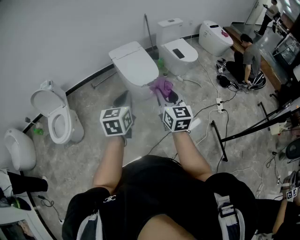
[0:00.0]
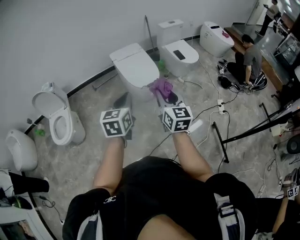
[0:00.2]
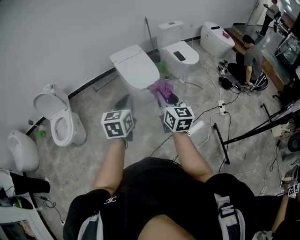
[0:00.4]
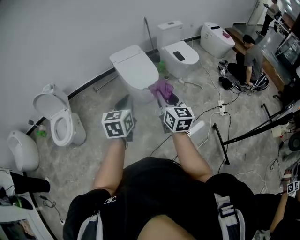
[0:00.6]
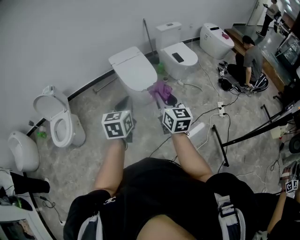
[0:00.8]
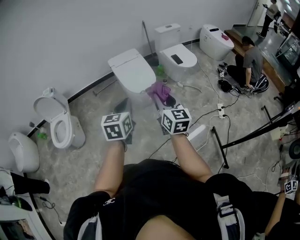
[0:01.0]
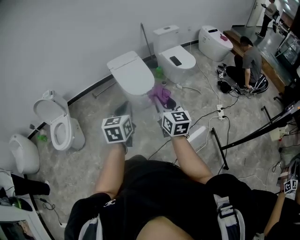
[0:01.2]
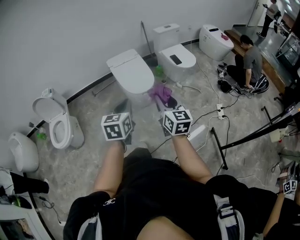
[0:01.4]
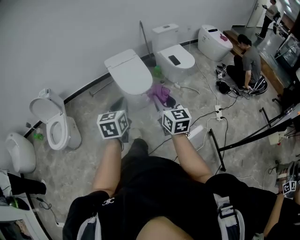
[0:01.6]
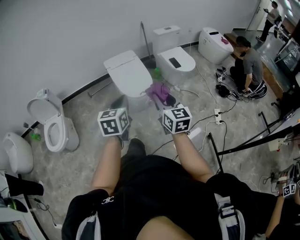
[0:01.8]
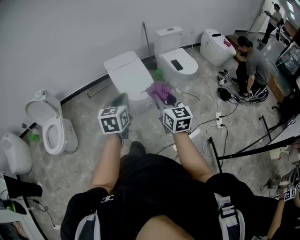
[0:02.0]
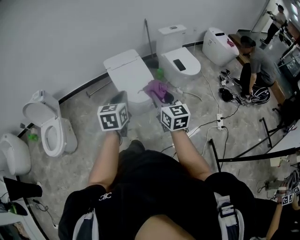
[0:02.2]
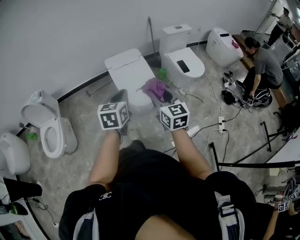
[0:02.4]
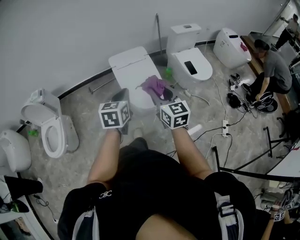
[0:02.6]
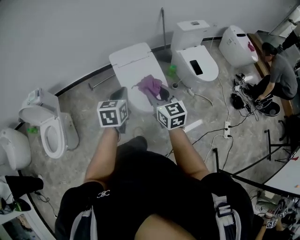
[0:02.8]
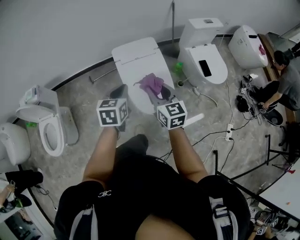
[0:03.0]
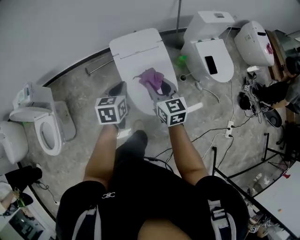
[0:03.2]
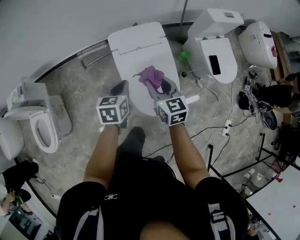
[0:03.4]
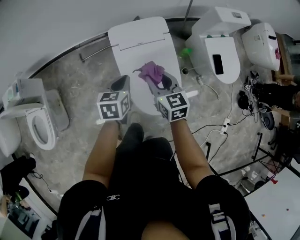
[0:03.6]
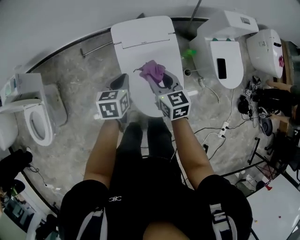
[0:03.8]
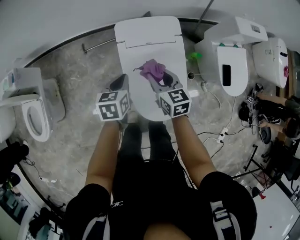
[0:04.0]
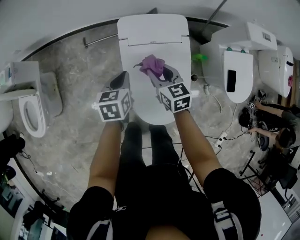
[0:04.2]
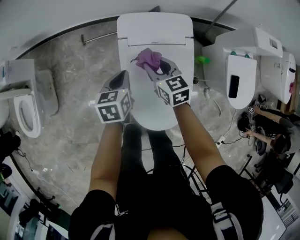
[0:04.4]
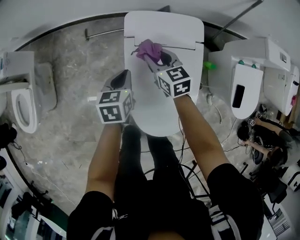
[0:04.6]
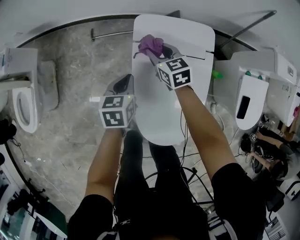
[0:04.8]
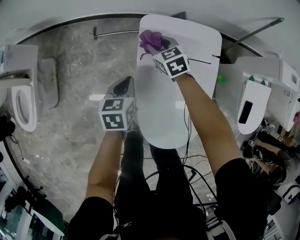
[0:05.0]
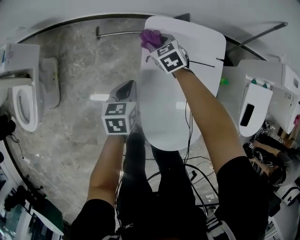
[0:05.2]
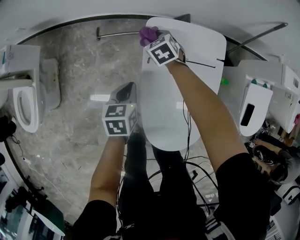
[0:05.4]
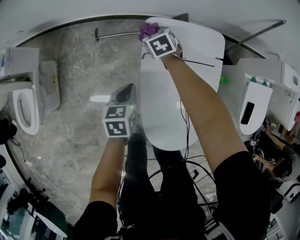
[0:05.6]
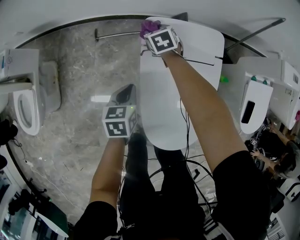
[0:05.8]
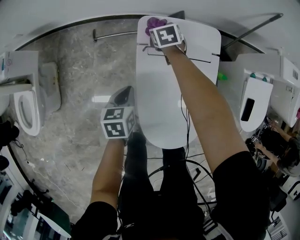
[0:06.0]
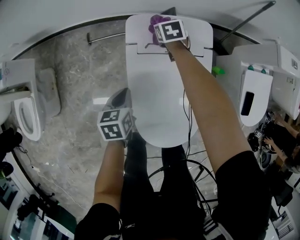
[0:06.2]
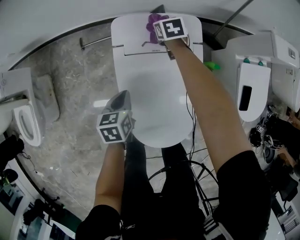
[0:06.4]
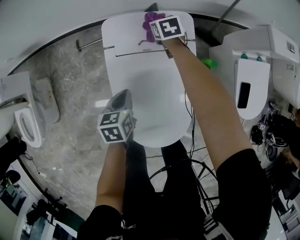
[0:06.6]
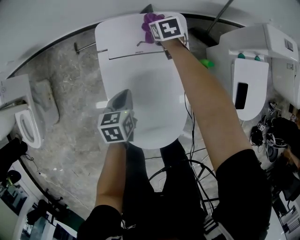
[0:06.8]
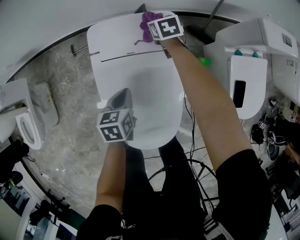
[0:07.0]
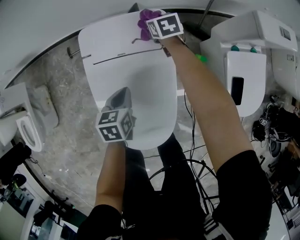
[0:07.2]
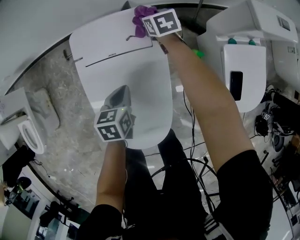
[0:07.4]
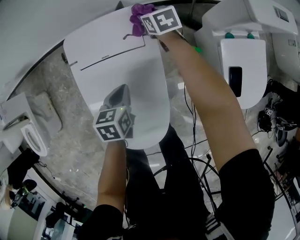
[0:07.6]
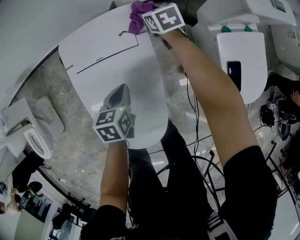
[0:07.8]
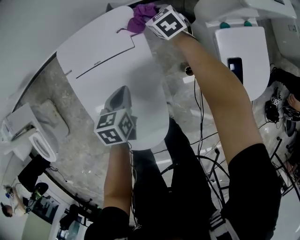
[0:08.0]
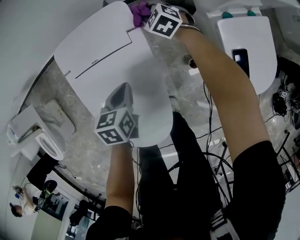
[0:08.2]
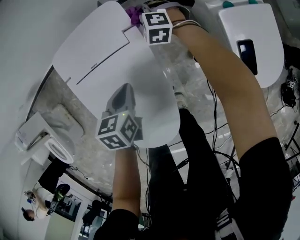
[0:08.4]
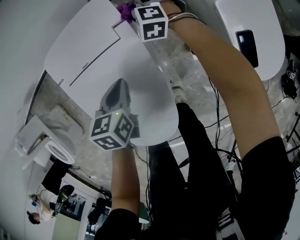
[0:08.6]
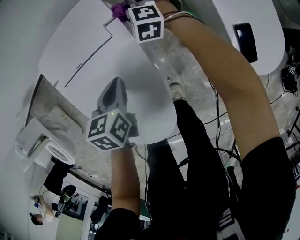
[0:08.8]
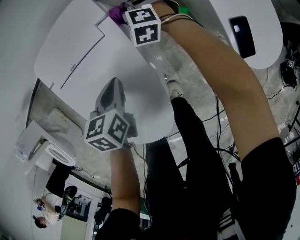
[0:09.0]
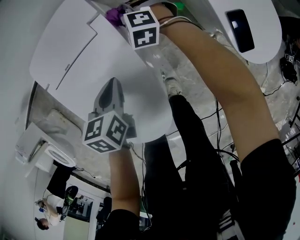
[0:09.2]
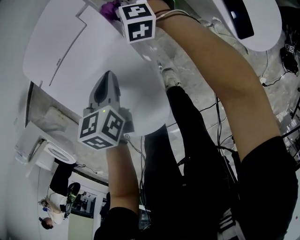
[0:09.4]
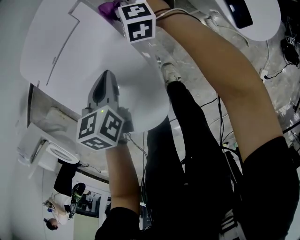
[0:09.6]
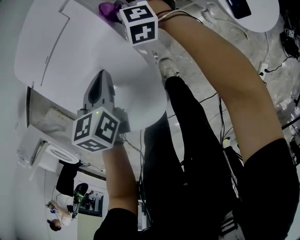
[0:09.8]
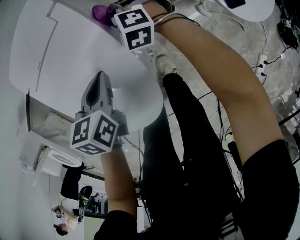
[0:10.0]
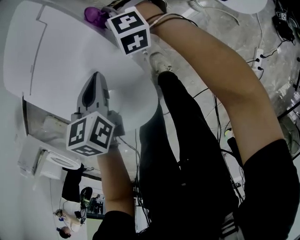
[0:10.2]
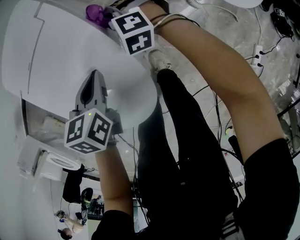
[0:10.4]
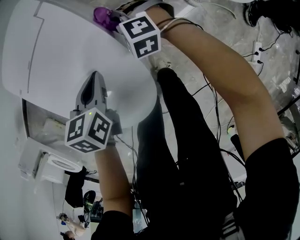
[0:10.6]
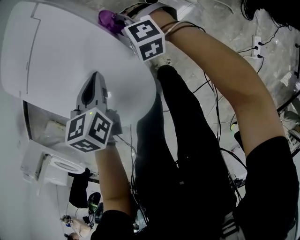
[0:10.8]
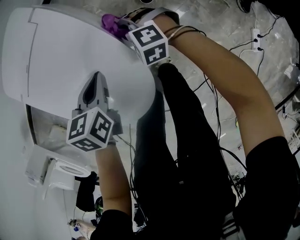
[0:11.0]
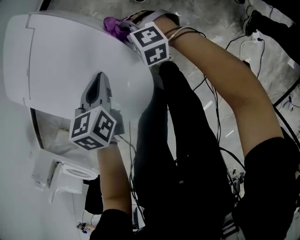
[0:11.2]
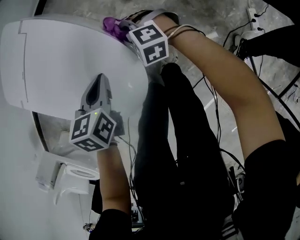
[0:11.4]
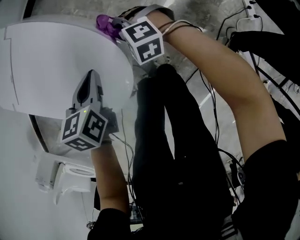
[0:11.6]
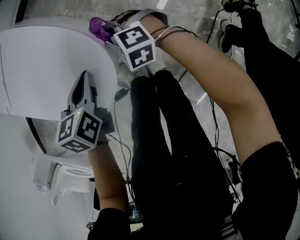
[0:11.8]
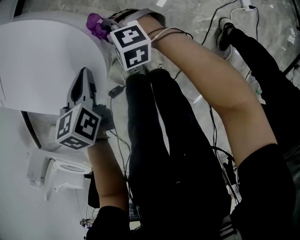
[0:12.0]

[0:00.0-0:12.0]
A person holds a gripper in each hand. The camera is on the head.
0:00.0 to 0:01.6: The grippers both shift to the right by approximately 10 cm.
0:01.6 to 0:03.0: The pair of grippers is taken forward, approximately 50 cm.
0:03.0 to 0:04.4: The right gripper travels forward and downward by roughly 40 cm, and changes its angle by some 30 degrees. The left gripper travels downward and forward by roughly 35 cm, and rotates roughly 30 degrees.
0:04.4 to 0:06.0: The right gripper shifts some 30 cm forward and downward, and changes its angle by about 20 degrees. Meanwhile the left gripper shifts roughly 10 cm downward and to the left.
0:06.0 to 0:07.6: Both grippers move to the right, approximately 30 cm.
0:07.6 to 0:09.0: The left gripper travels to the right by approximately 5 cm. The right gripper shifts approximately 15 cm downward and backward, and rolls counterclockwise, seen from behind, by approximately 50 degrees.
0:09.0 to 0:10.4: The left gripper moves backward, approximately 10 cm. Meanwhile the right gripper moves backward, roughly 20 cm.
0:10.4 to 0:12.0: Both grippers move backward, some 25 cm. The right gripper rotates some 20 degrees.

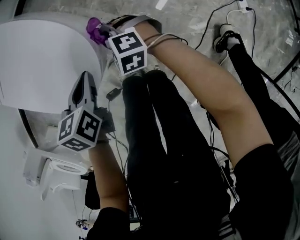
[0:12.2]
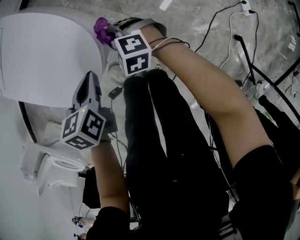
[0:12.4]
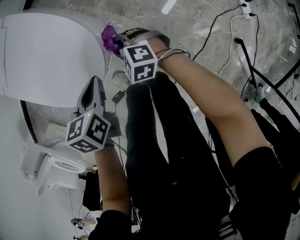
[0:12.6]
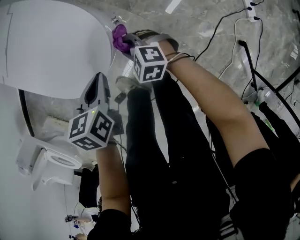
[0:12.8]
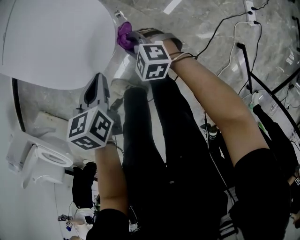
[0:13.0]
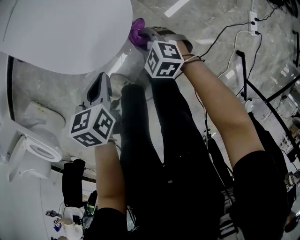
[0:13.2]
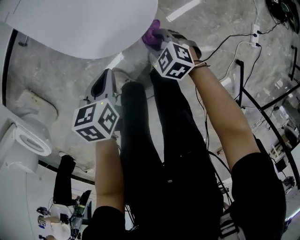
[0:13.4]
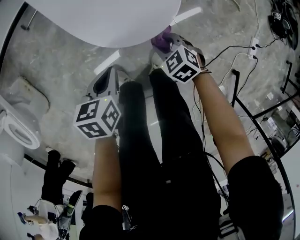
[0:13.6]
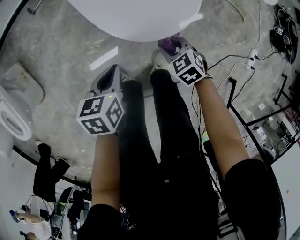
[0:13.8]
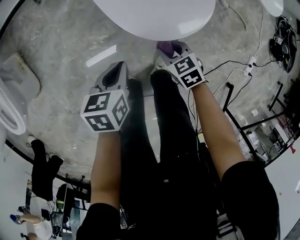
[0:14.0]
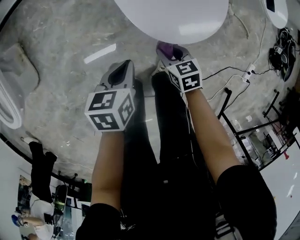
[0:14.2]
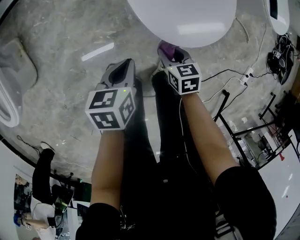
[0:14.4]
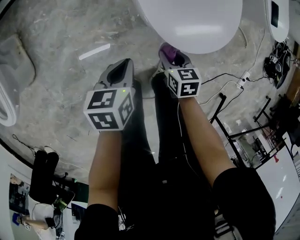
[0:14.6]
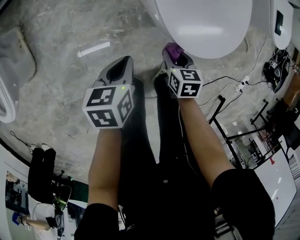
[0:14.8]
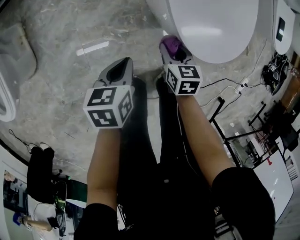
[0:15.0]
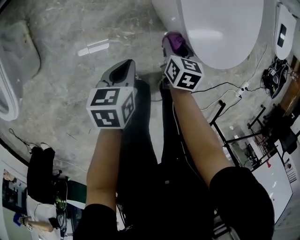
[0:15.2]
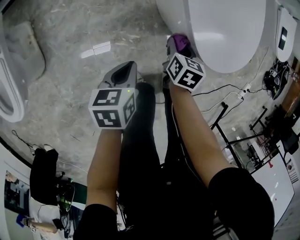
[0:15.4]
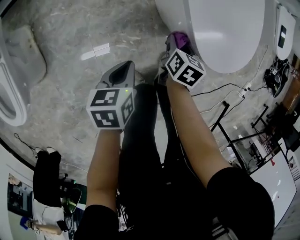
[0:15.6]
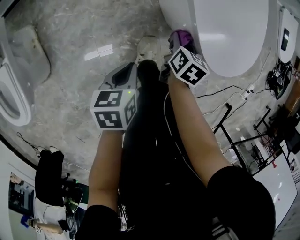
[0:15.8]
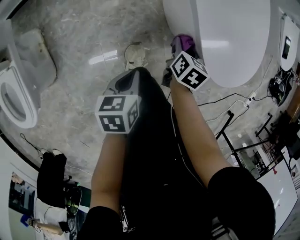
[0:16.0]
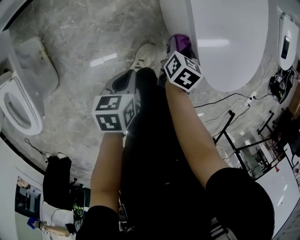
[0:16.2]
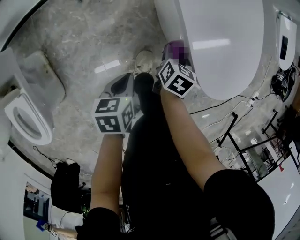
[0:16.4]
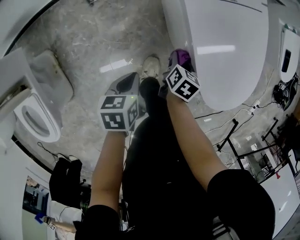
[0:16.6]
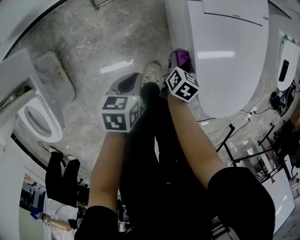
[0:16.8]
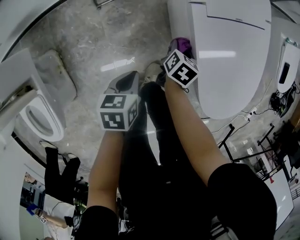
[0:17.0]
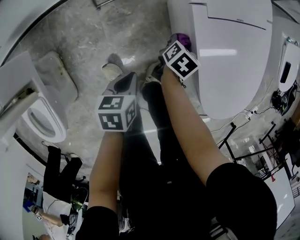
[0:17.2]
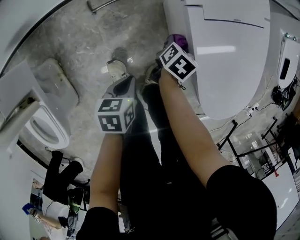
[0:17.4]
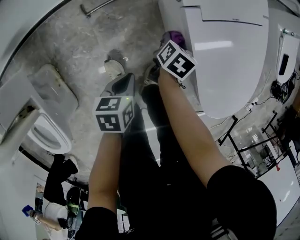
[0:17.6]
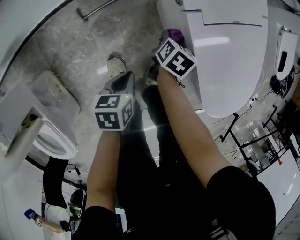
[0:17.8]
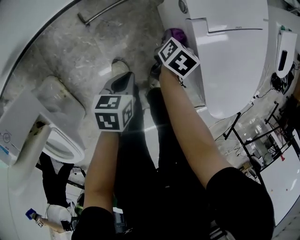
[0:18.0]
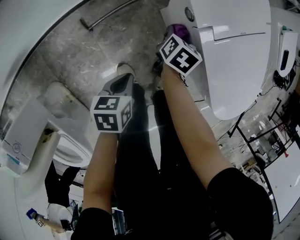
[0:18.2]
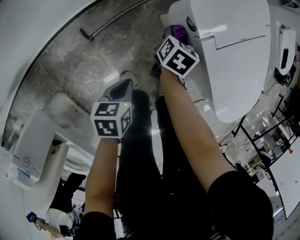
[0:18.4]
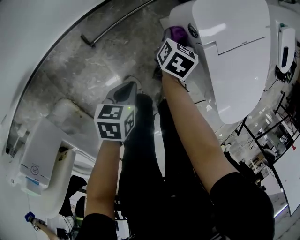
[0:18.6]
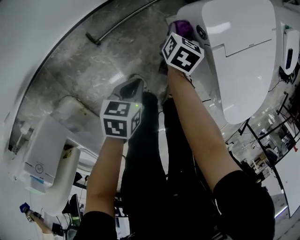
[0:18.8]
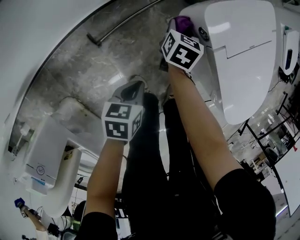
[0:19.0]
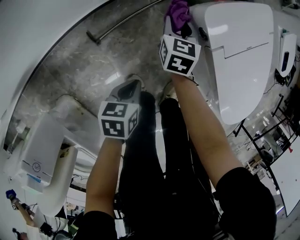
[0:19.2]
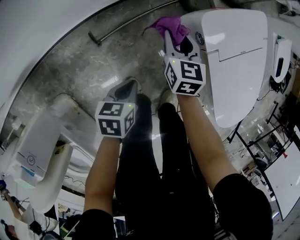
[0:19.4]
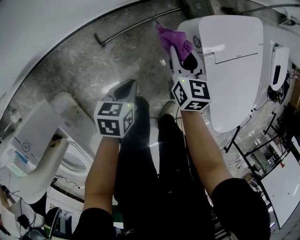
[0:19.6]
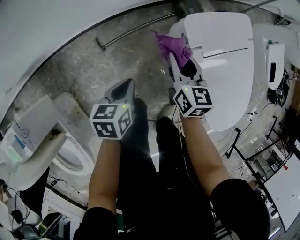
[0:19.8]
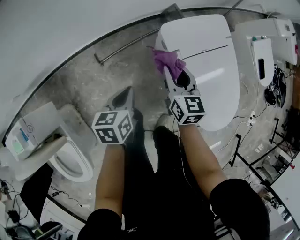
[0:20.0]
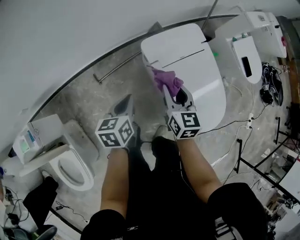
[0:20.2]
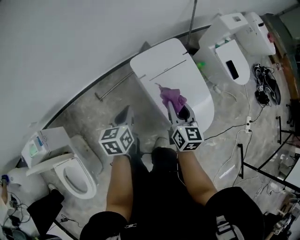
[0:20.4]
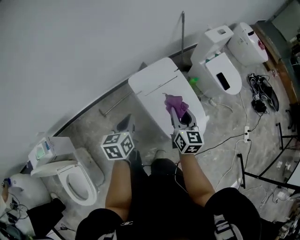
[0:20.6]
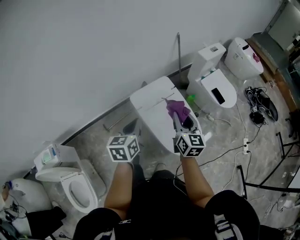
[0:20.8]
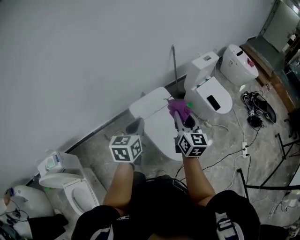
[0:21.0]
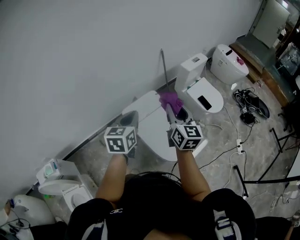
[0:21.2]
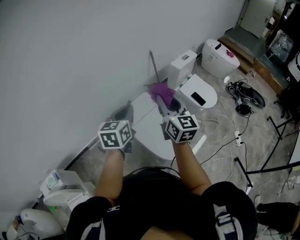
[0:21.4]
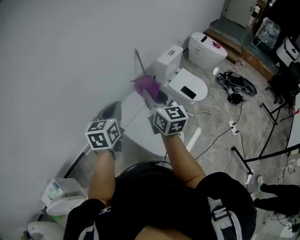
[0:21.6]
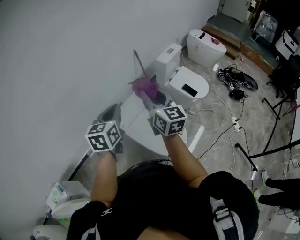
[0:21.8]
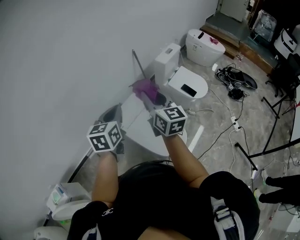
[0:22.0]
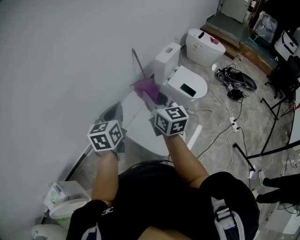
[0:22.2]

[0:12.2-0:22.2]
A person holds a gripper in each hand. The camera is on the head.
0:12.2 to 0:13.6: The grippers both shift to the left and backward by approximately 20 cm.
0:13.6 to 0:15.0: The grippers both shift to the left by some 20 cm. The right gripper rotates approximately 30 degrees.
0:15.0 to 0:16.4: The left gripper heads to the left and forward, covering approximately 20 cm; the right gripper heads forward and to the left, covering about 20 cm, and turns by about 40 degrees.
0:16.4 to 0:18.0: The grippers both shift to the left and forward by approximately 25 cm.
0:18.0 to 0:19.4: The left gripper travels to the left by roughly 10 cm. Meanwhile the right gripper is displaced to the left and upward by about 20 cm, and swivels approximately 40 degrees.
0:19.4 to 0:20.8: The right gripper moves upward, to the right and backward, roughly 70 cm, and swivels roughly 30 degrees. The left gripper goes roughly 60 cm upward and to the right, and changes its angle by about 40 degrees.
0:20.8 to 0:22.2: The right gripper travels upward by roughly 20 cm. Meanwhile the left gripper goes approximately 20 cm upward, forward and to the right.

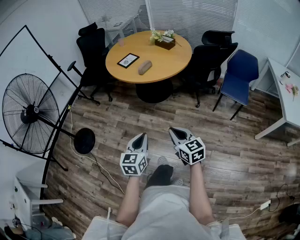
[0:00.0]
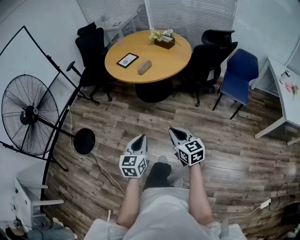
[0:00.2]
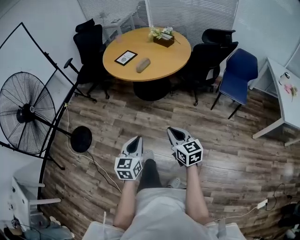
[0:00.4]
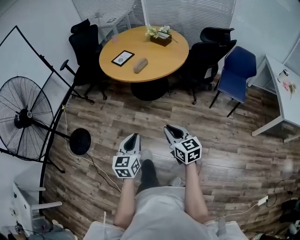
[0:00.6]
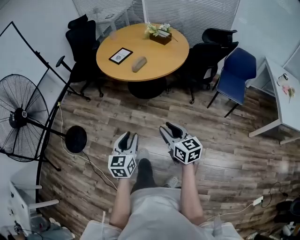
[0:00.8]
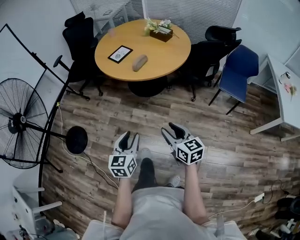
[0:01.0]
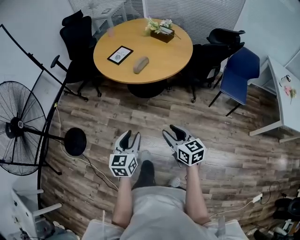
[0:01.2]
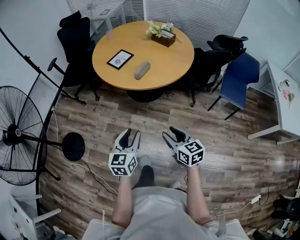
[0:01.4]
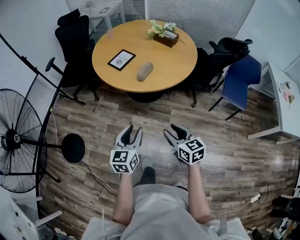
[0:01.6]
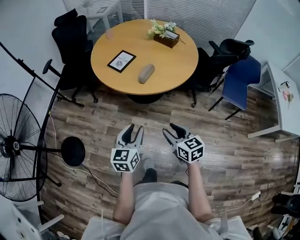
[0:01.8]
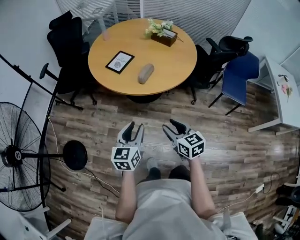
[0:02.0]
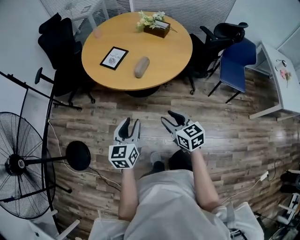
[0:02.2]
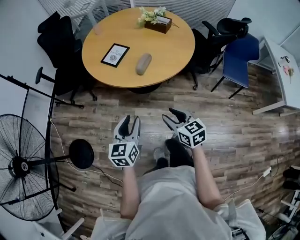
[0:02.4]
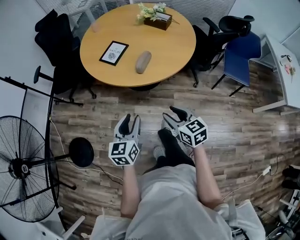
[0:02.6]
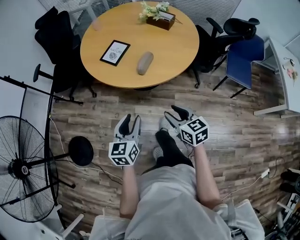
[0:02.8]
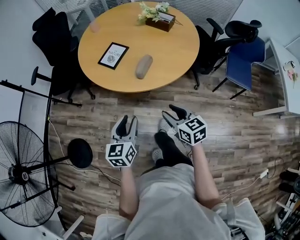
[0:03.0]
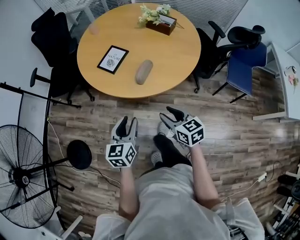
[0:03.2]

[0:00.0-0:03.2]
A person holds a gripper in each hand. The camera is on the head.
0:00.0 to 0:01.6: Both grippers travel together forward, about 25 cm. The right gripper opens; the left gripper opens.
0:01.6 to 0:03.2: The grippers both shift forward by approximately 20 cm.
